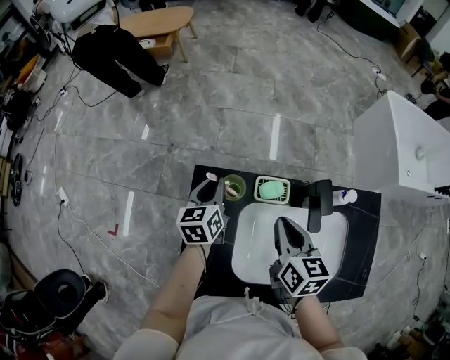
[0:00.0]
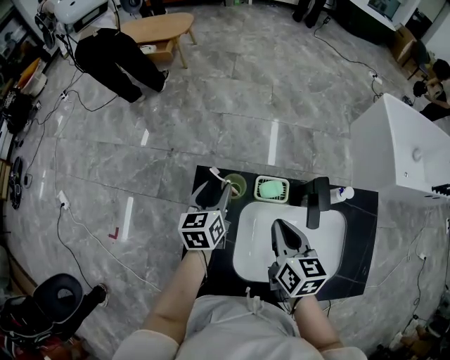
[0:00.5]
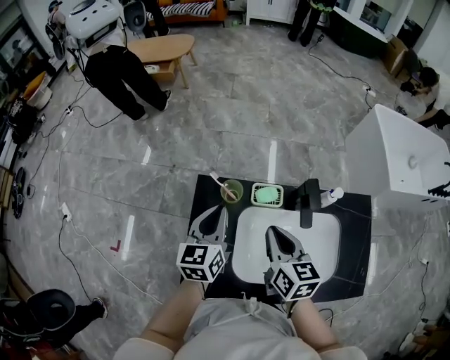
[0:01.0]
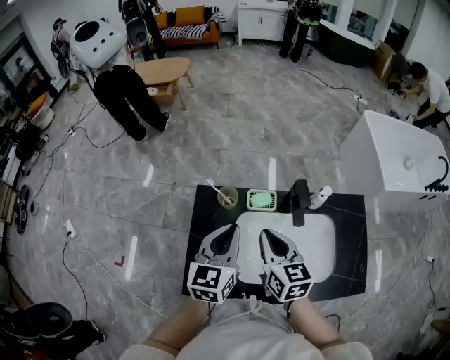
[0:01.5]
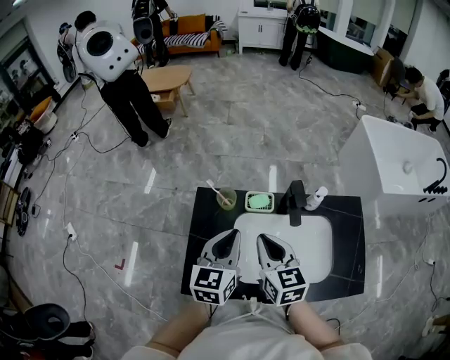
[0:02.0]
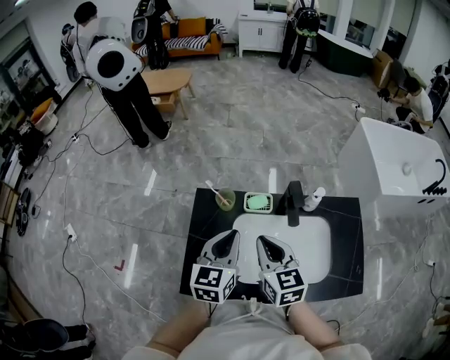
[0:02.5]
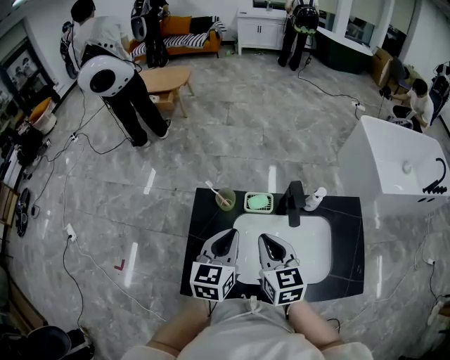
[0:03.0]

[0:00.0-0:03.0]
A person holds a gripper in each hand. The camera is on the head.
0:00.0 to 0:01.5: The right gripper travels backward and upward by roughly 10 cm. The left gripper goes roughly 25 cm backward, upward and to the right, turns by roughly 20 degrees, and opens and closes again.
0:01.5 to 0:03.0: The grippers stay close to where they were, moving slightly.

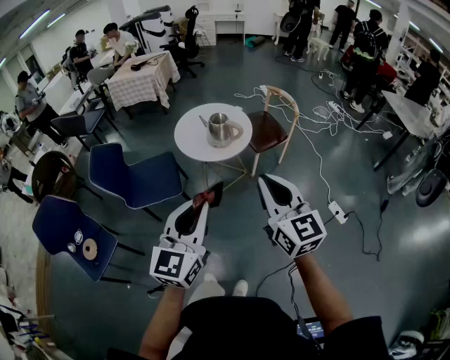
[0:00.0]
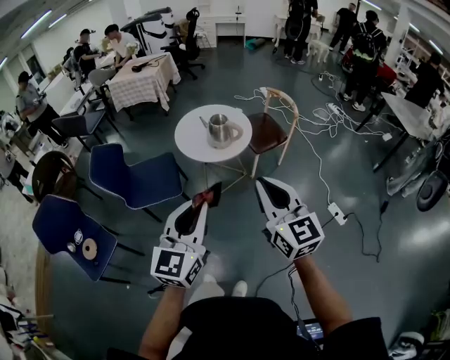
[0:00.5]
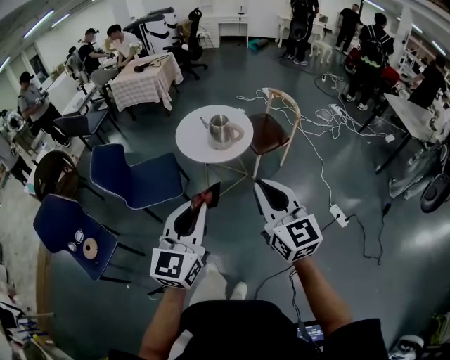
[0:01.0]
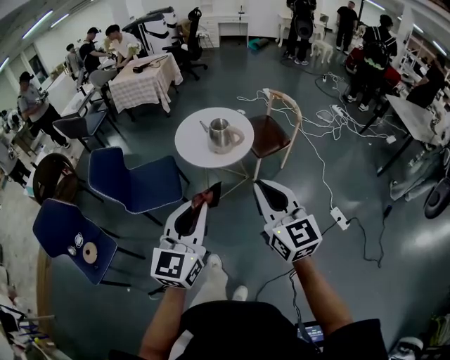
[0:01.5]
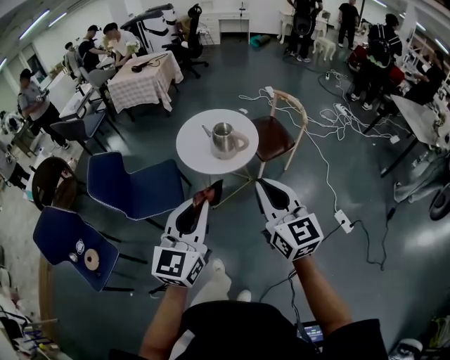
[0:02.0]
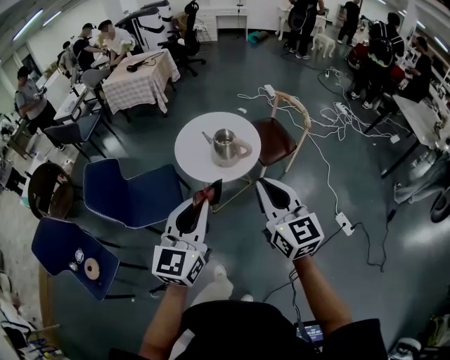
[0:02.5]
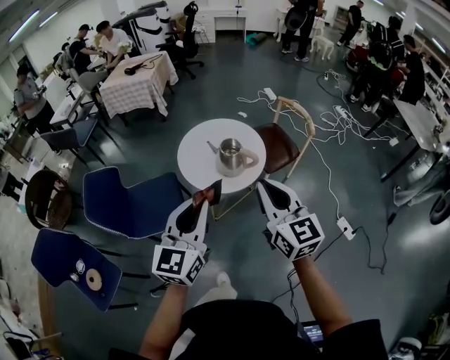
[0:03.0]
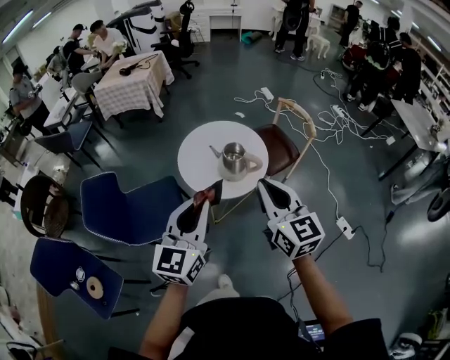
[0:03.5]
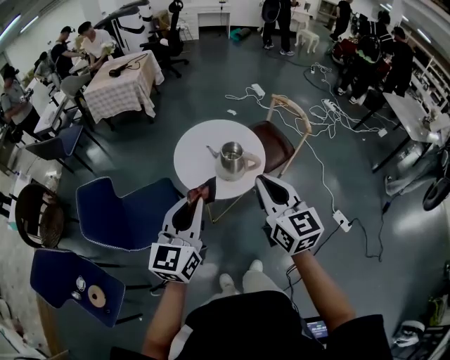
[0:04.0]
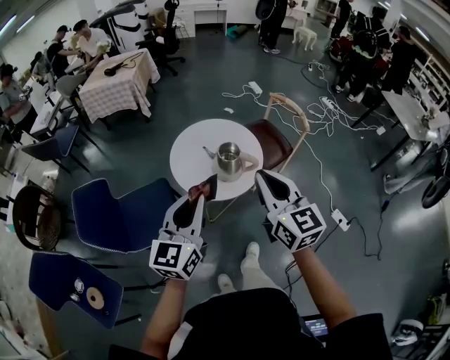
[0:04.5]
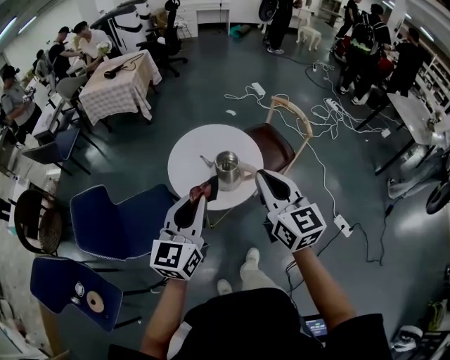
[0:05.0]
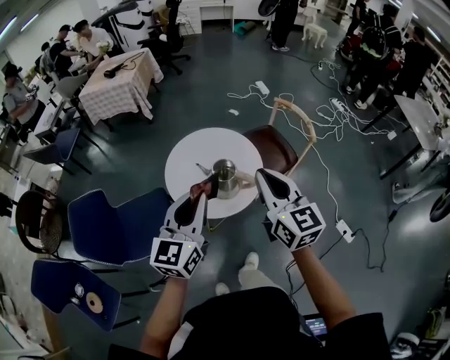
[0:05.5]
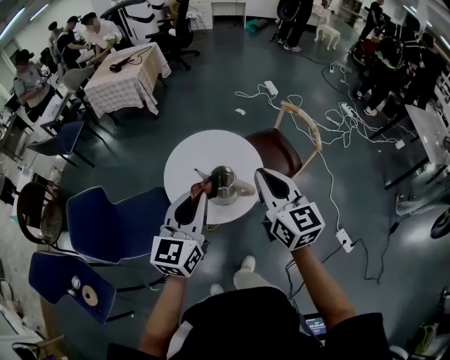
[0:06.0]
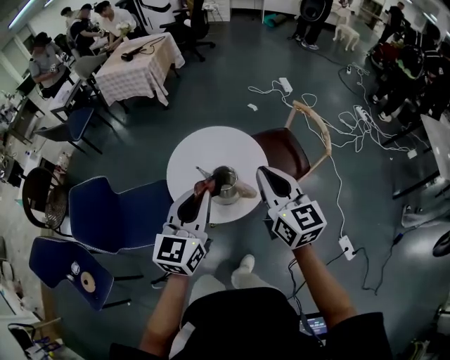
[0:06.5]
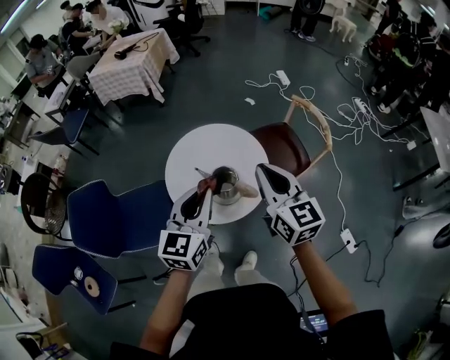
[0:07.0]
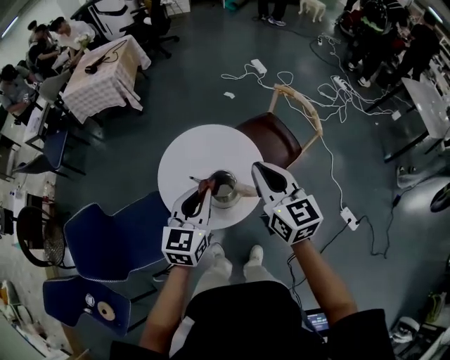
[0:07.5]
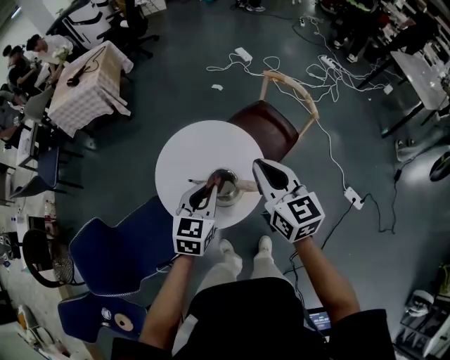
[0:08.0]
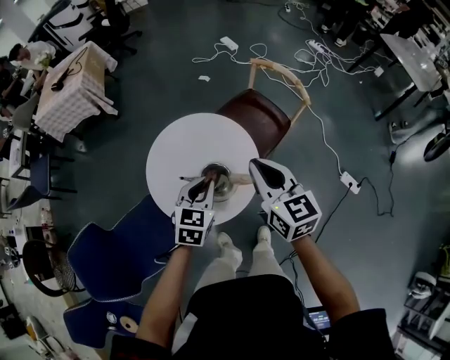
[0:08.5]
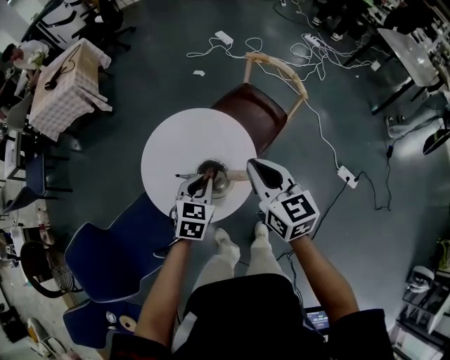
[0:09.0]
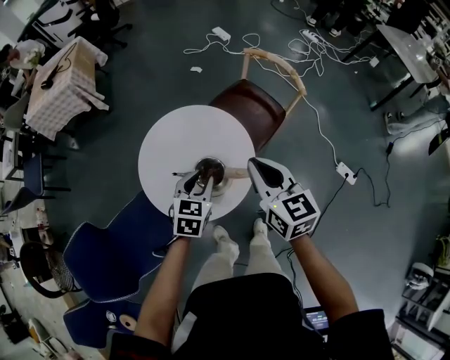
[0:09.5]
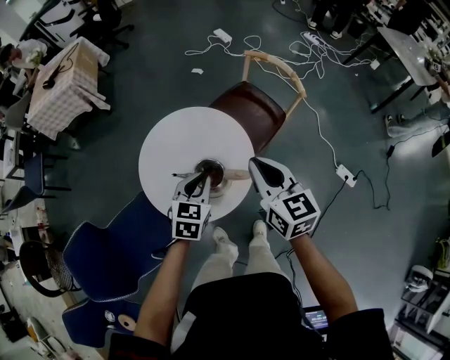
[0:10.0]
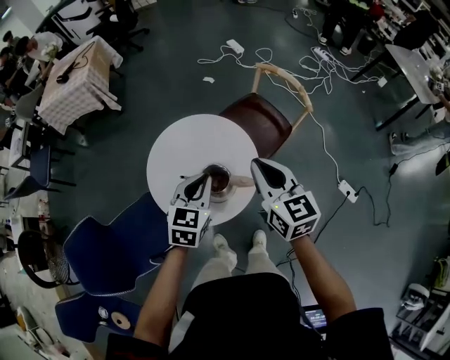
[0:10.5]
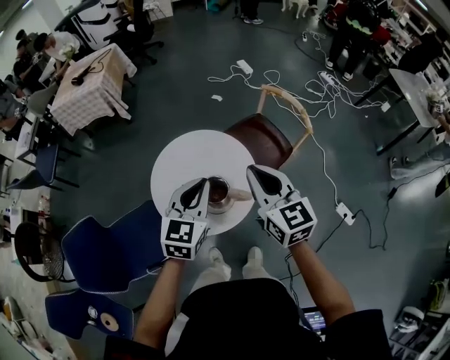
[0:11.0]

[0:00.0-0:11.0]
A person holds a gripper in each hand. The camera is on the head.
0:00.0 to 0:02.0: Both grippers travel together forward, roughly 10 cm.
0:02.0 to 0:03.5: Both grippers travel together forward and to the left, some 25 cm.
0:03.5 to 0:05.5: Both grippers travel together forward, approximately 20 cm.
0:05.5 to 0:07.5: The right gripper travels forward by approximately 20 cm. Meanwhile the left gripper shifts some 20 cm forward and downward.
0:07.5 to 0:09.0: The left gripper is displaced downward by some 15 cm, and changes its angle by about 30 degrees. The right gripper moves downward, roughly 10 cm.
0:09.0 to 0:11.0: The right gripper heads upward, covering about 10 cm, while the left gripper is displaced upward by about 20 cm, and turns by roughly 20 degrees.

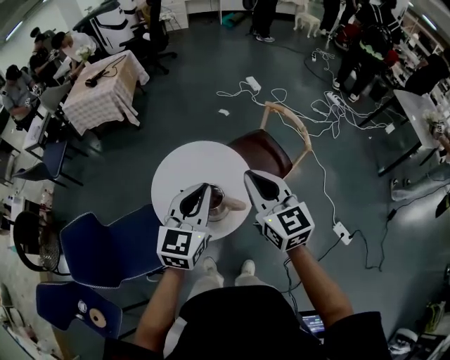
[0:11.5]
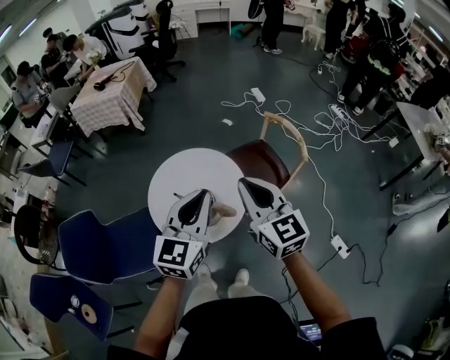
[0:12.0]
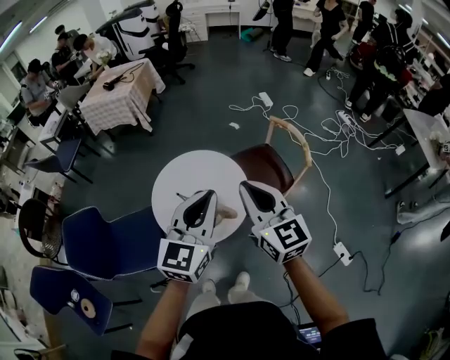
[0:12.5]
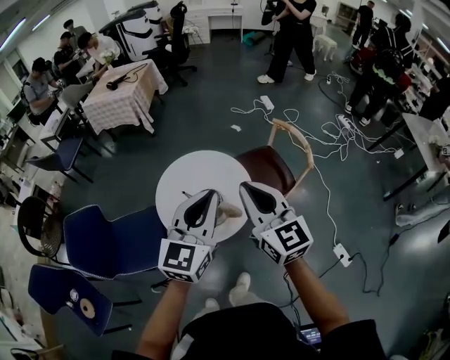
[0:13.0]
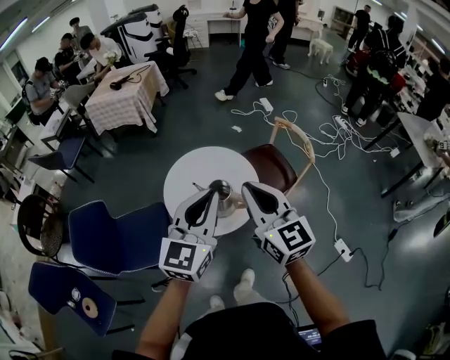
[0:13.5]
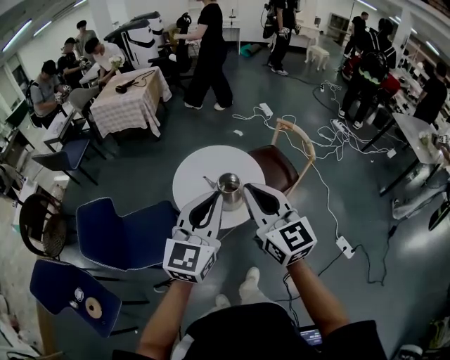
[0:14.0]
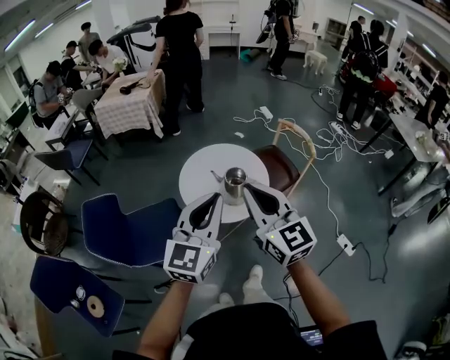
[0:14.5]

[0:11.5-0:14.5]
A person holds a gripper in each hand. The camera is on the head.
0:11.5 to 0:13.0: The right gripper moves backward, about 5 cm. The left gripper moves backward and upward, approximately 10 cm.
0:13.0 to 0:14.5: Both grippers move backward and to the left, some 30 cm.

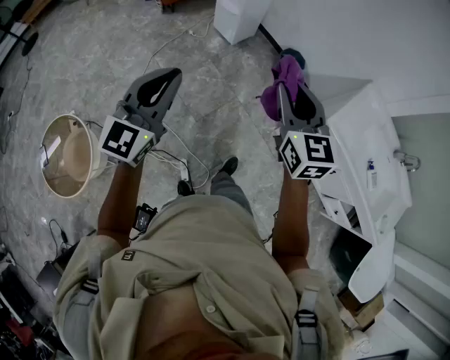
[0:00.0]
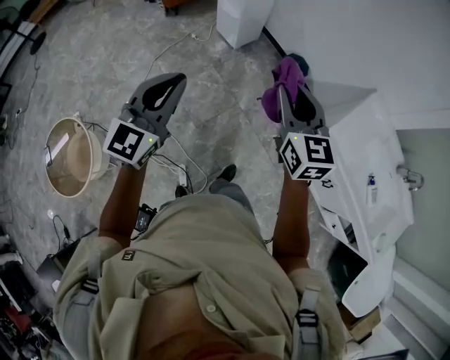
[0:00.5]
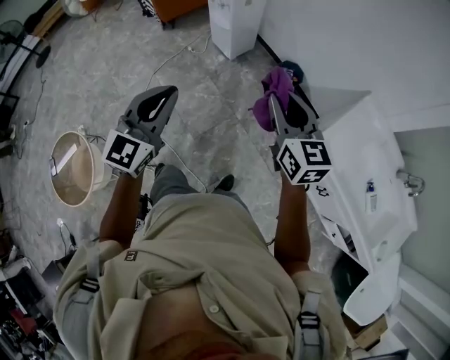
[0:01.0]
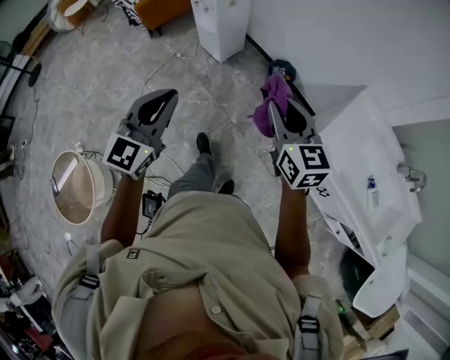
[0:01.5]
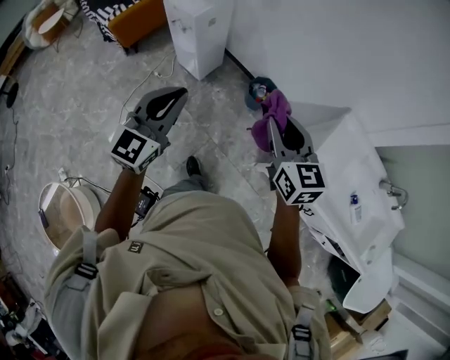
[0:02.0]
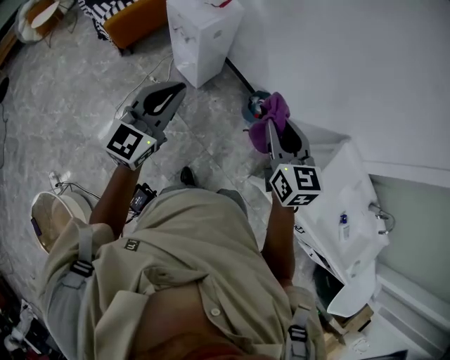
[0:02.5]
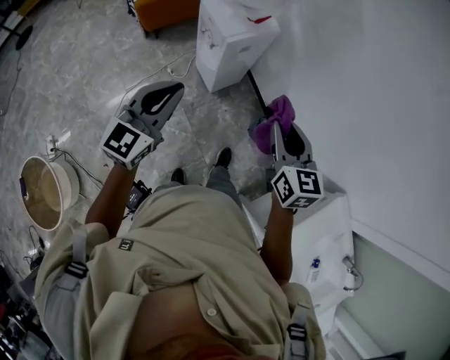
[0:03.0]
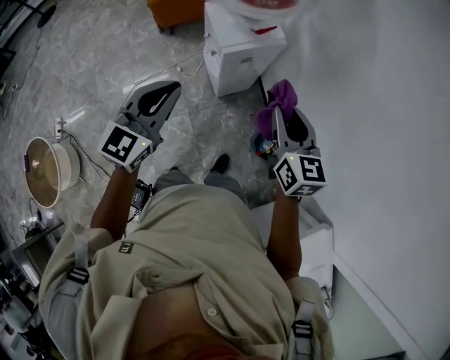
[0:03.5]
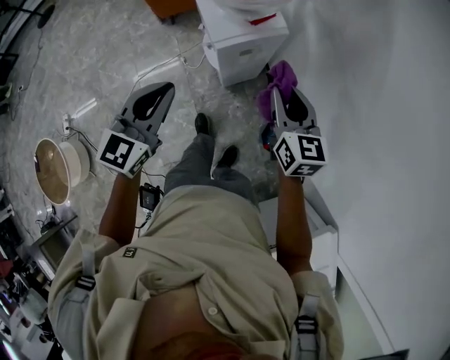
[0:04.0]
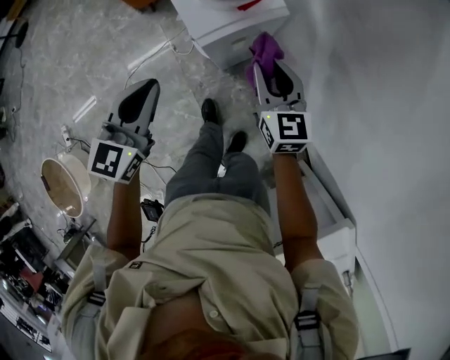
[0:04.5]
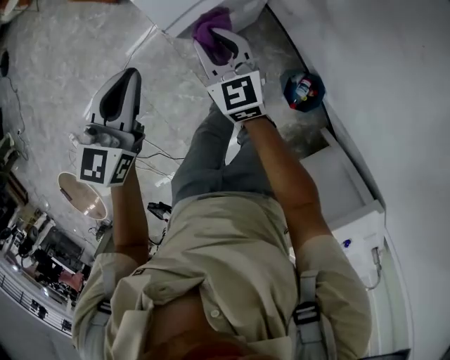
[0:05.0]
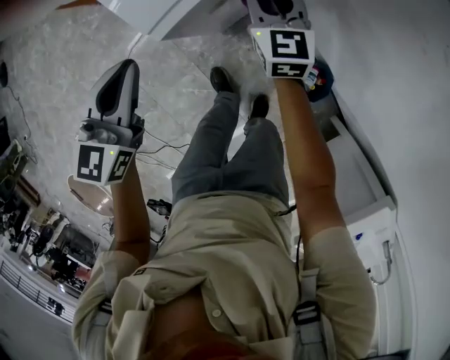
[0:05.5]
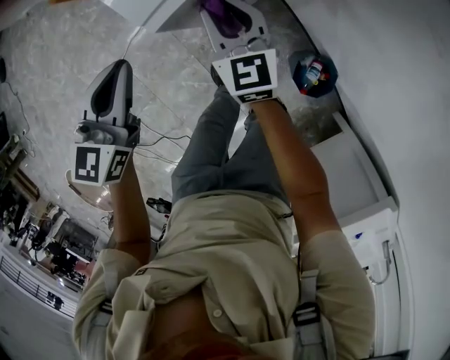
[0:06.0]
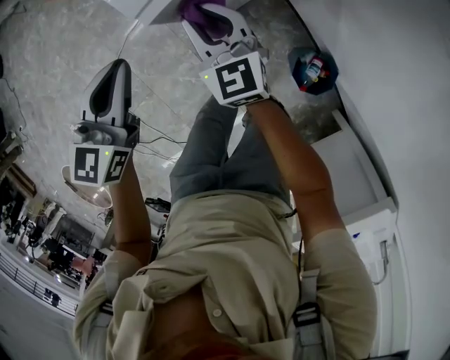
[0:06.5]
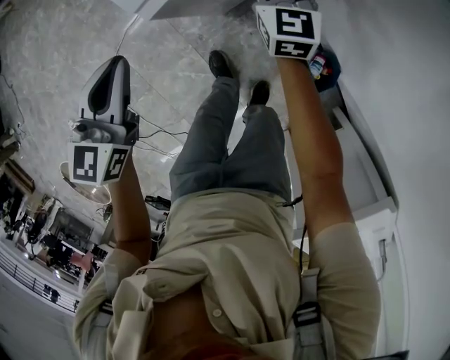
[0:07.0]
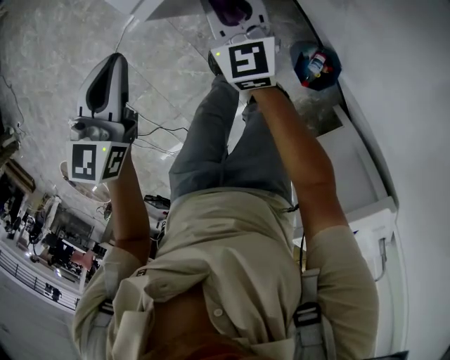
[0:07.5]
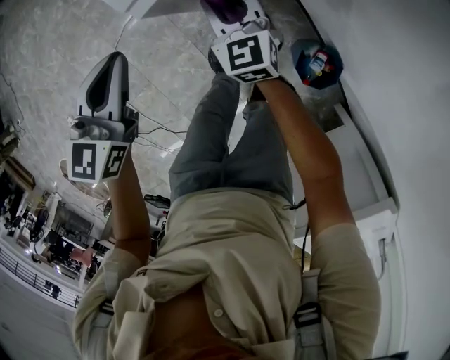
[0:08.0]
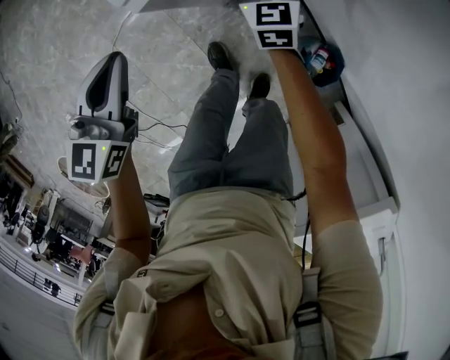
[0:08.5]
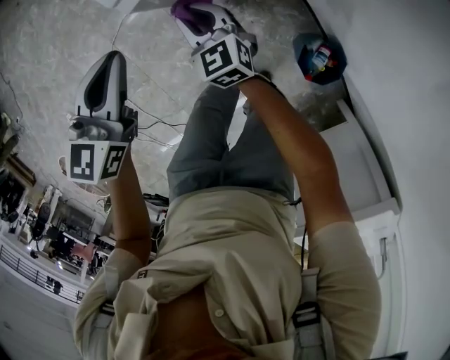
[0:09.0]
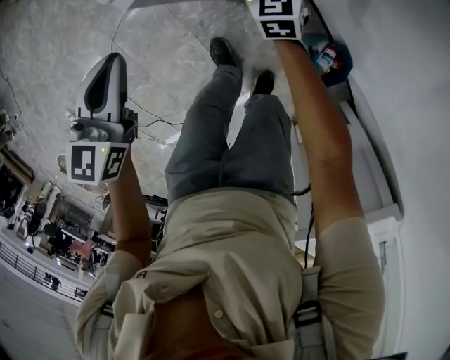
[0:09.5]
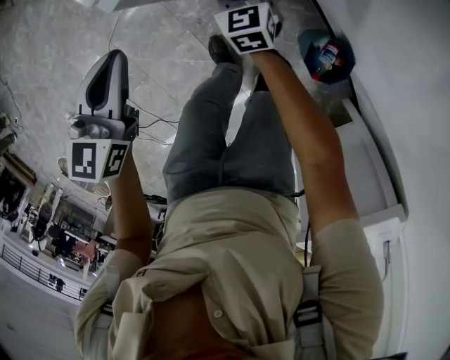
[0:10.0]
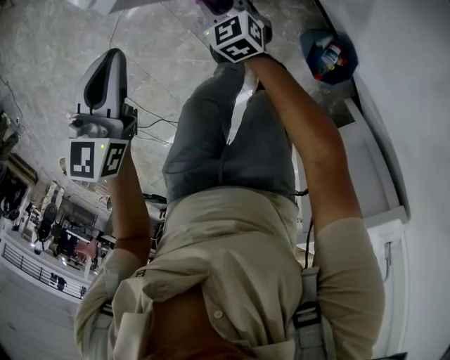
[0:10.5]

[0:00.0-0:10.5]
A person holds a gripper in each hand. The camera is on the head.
0:00.0 to 0:02.0: Both grippers travel together forward and to the right, some 35 cm.
0:02.0 to 0:04.0: The left gripper ends up approximately 40 cm from where it was, and rotates about 30 degrees; the right gripper ends up some 50 cm from where it was, and changes its angle by some 20 degrees.
0:04.0 to 0:06.5: The left gripper travels downward and forward by approximately 30 cm, while the right gripper goes roughly 35 cm downward, to the left and forward.
0:06.5 to 0:08.5: The right gripper swings left and right, about 10 cm each way, with 2 reversals.
0:08.5 to 0:10.5: The right gripper moves left and right over approximately 15 cm, changing direction 2 times; the left gripper moves downward, roughly 5 cm.
